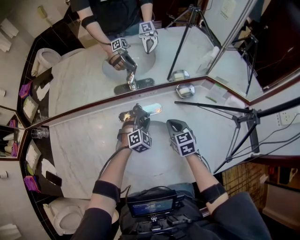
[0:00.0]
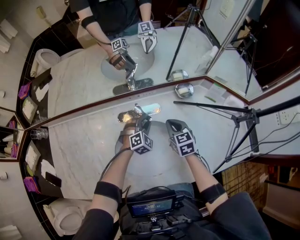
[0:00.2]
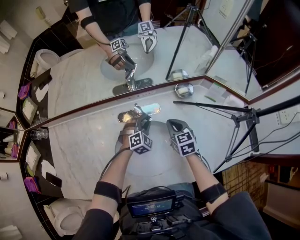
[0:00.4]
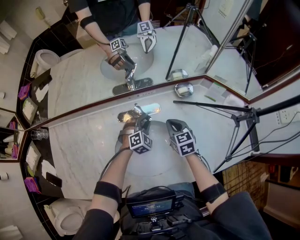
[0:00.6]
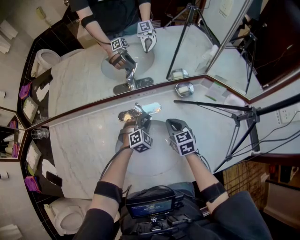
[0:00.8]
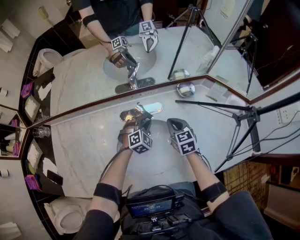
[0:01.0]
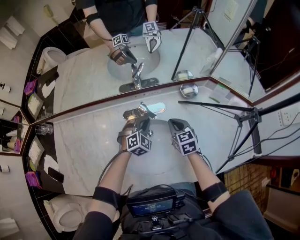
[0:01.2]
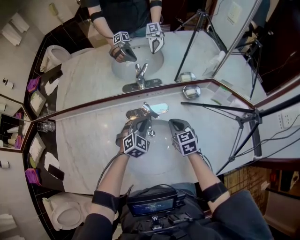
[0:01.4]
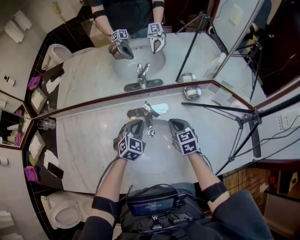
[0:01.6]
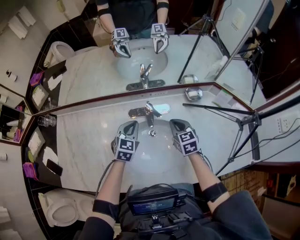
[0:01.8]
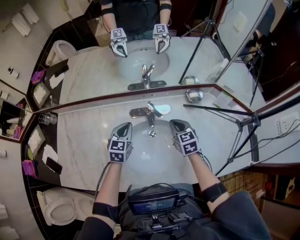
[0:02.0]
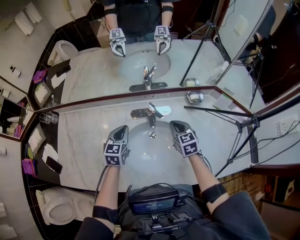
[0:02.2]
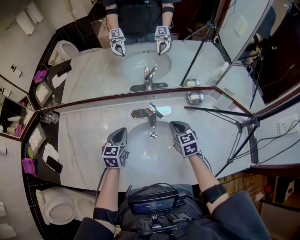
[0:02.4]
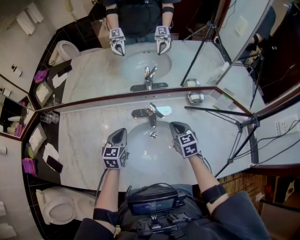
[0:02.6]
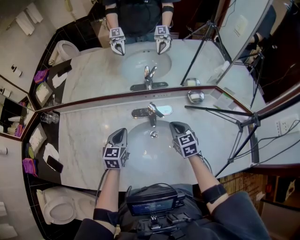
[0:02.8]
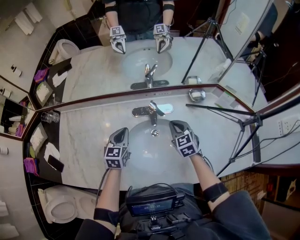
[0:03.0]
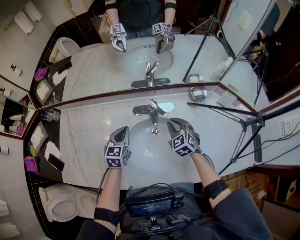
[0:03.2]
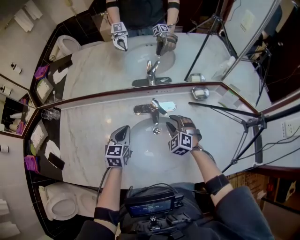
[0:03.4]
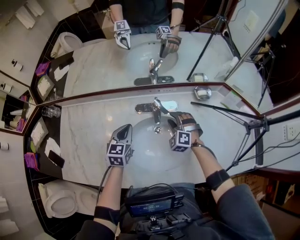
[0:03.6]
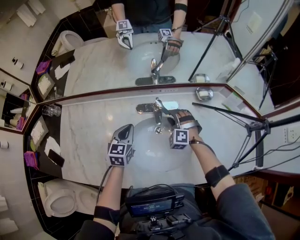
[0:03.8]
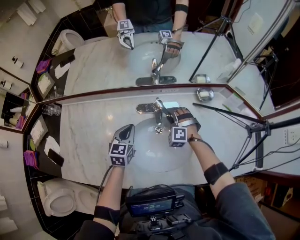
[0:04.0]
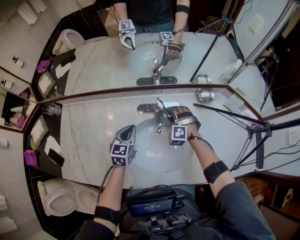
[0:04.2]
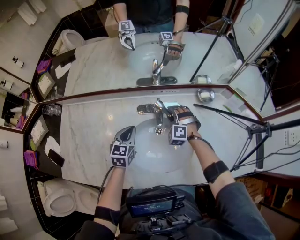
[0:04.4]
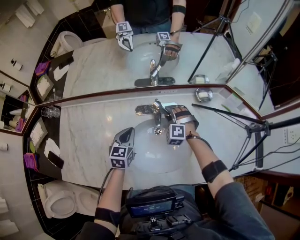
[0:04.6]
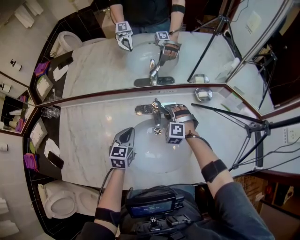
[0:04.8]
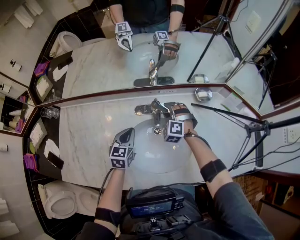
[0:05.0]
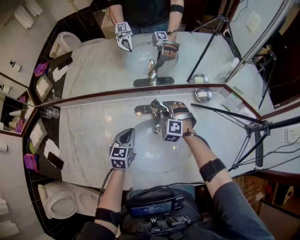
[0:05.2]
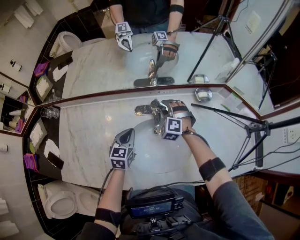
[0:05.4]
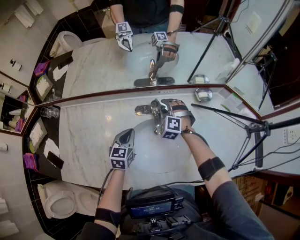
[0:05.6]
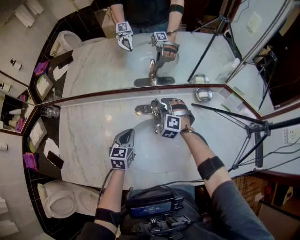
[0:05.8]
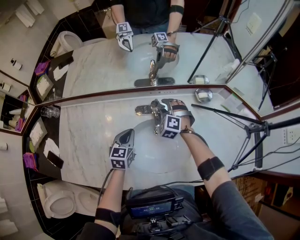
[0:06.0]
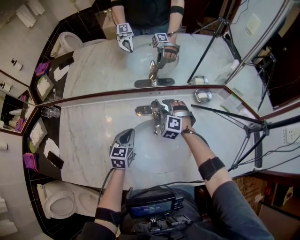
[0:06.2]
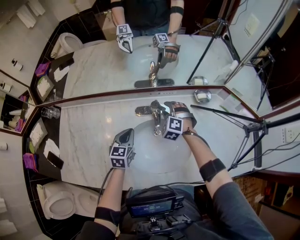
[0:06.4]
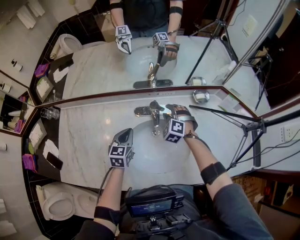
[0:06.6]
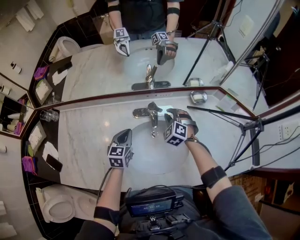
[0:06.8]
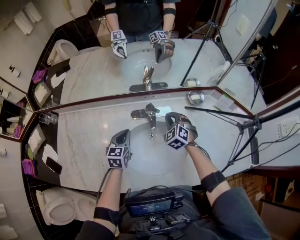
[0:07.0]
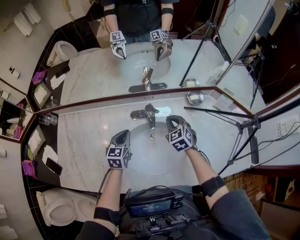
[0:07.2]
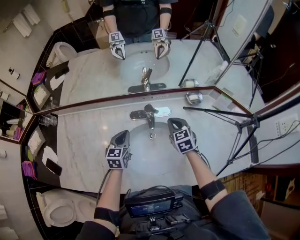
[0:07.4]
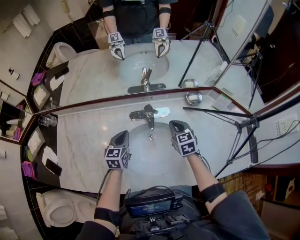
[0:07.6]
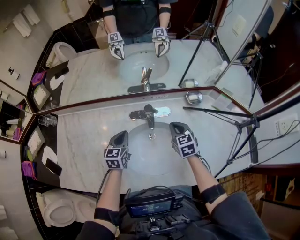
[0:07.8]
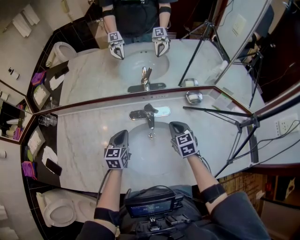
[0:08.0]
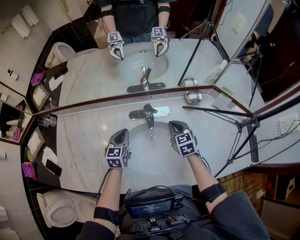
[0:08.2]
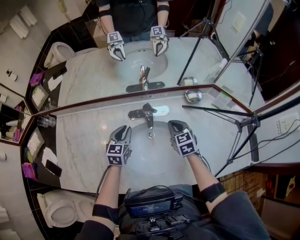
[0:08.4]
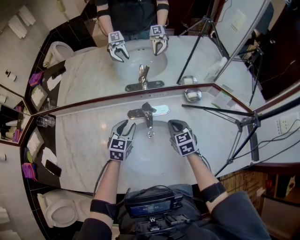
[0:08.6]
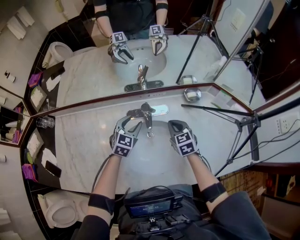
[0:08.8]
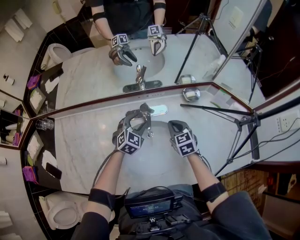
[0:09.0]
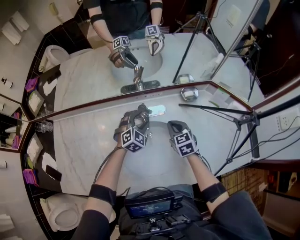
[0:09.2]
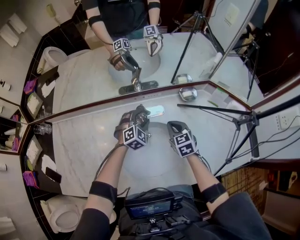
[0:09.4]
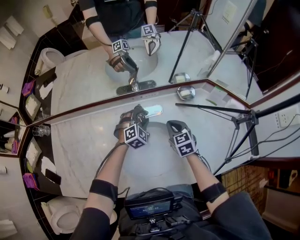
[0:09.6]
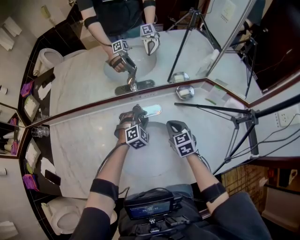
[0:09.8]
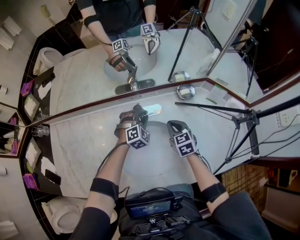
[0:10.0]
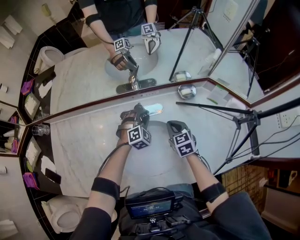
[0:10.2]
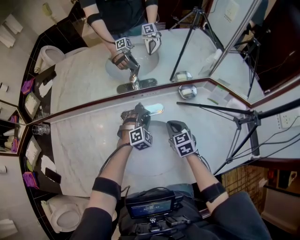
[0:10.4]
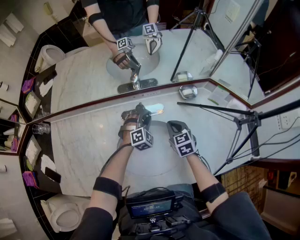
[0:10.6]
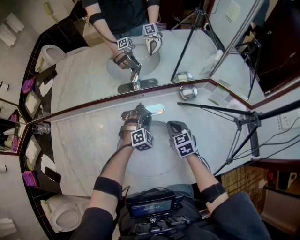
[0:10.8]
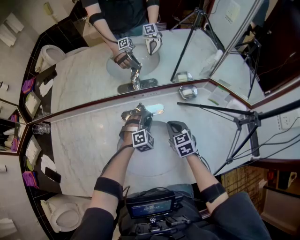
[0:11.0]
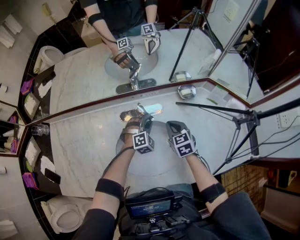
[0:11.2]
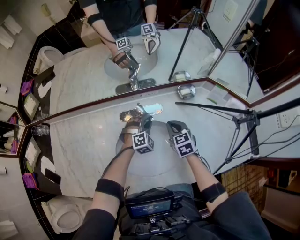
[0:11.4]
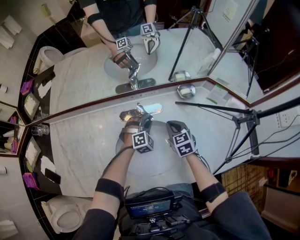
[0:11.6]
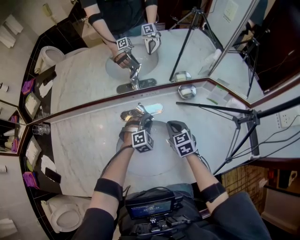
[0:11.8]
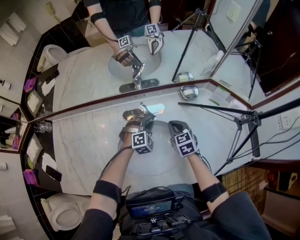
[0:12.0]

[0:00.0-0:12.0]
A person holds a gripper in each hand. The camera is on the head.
0:00.0 to 0:01.6: The left gripper travels upward and to the left by approximately 10 cm, swivels some 20 degrees, and closes its fingers.
0:01.6 to 0:03.0: The left gripper goes some 10 cm to the left, and swivels about 40 degrees.
0:03.0 to 0:04.4: The right gripper travels forward and downward by about 10 cm, rolls counterclockwise, seen from behind, by about 60 degrees, and opens its fingers.
0:04.4 to 0:06.0: The grippers make only small movements.
0:06.0 to 0:07.6: The right gripper shifts roughly 10 cm backward and to the right, rotates around the line of its fingers by approximately 60 degrees, clockwise from behind, and closes.
0:07.6 to 0:09.0: The left gripper is displaced to the right and forward by roughly 15 cm, rolls clockwise, seen from behind, by roughly 40 degrees, and opens up.
0:09.0 to 0:10.4: The left gripper heads to the right and downward, covering some 10 cm, rotates roughly 20 degrees, and closes.
0:10.4 to 0:12.0: The grippers stay close to where they were, moving slightly.

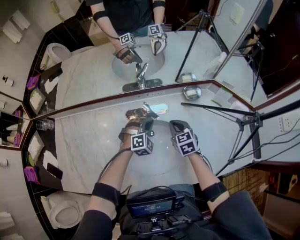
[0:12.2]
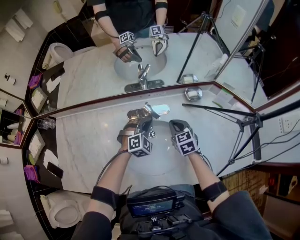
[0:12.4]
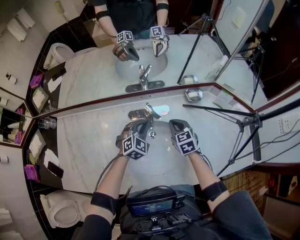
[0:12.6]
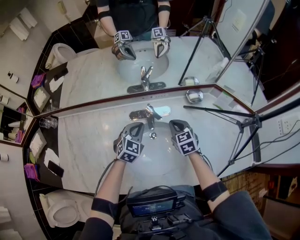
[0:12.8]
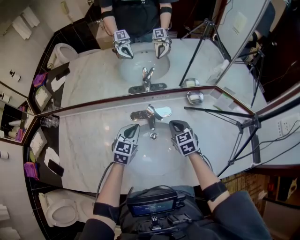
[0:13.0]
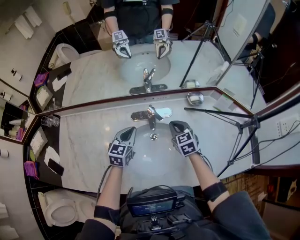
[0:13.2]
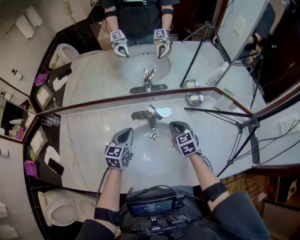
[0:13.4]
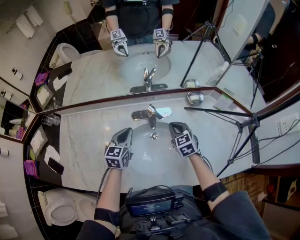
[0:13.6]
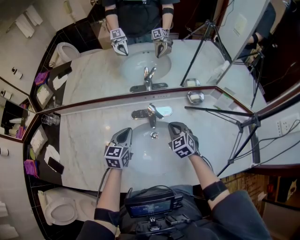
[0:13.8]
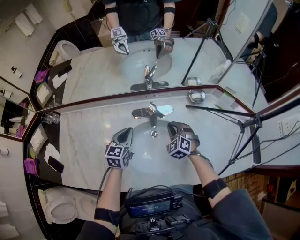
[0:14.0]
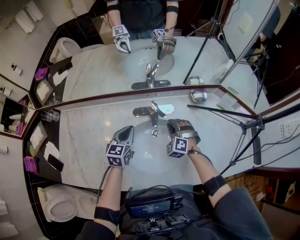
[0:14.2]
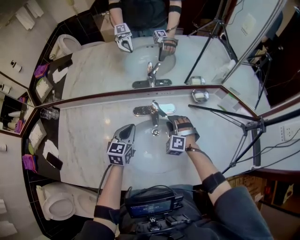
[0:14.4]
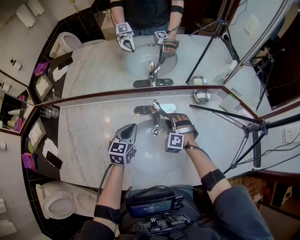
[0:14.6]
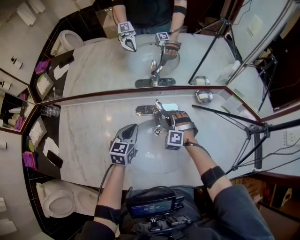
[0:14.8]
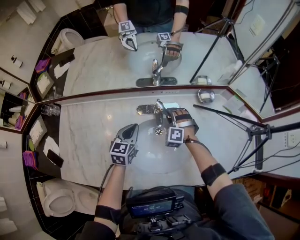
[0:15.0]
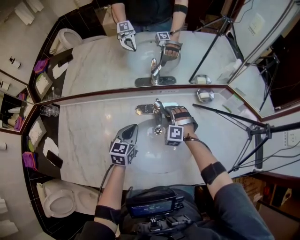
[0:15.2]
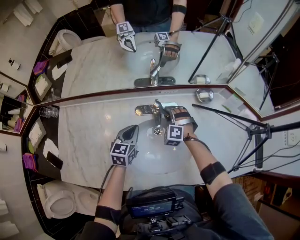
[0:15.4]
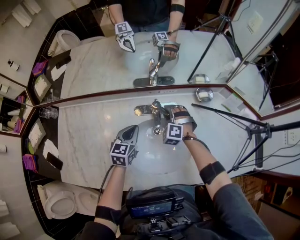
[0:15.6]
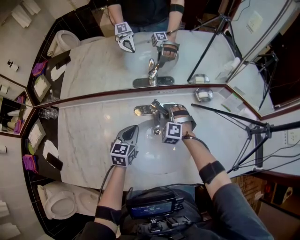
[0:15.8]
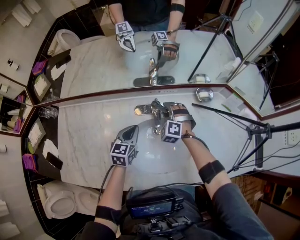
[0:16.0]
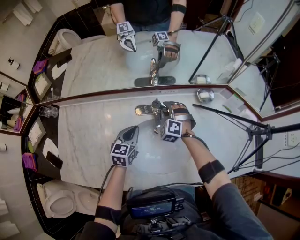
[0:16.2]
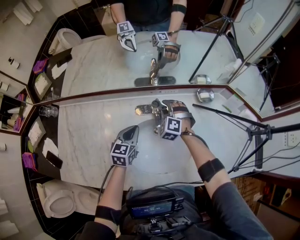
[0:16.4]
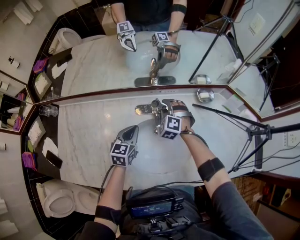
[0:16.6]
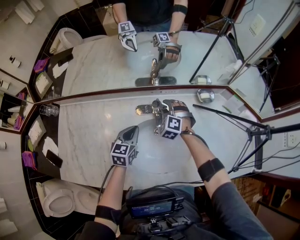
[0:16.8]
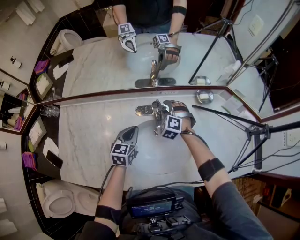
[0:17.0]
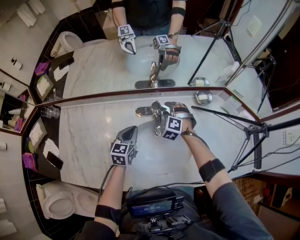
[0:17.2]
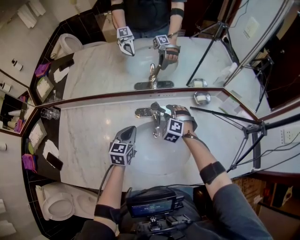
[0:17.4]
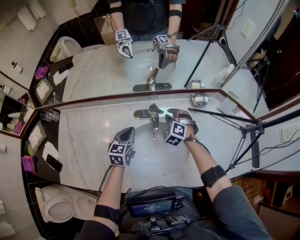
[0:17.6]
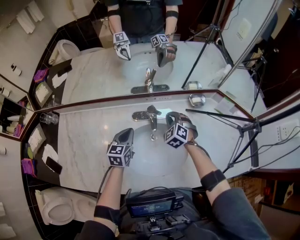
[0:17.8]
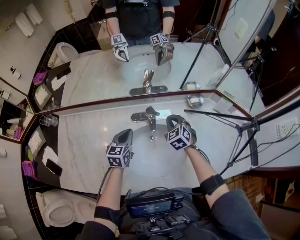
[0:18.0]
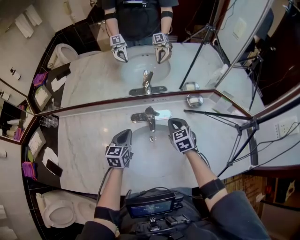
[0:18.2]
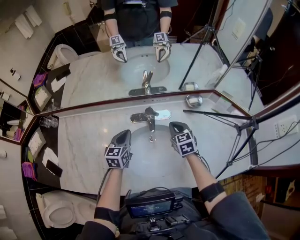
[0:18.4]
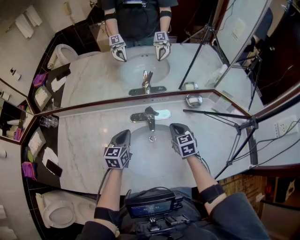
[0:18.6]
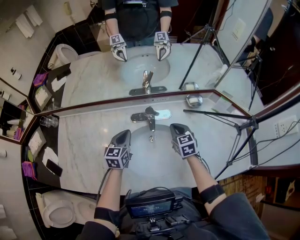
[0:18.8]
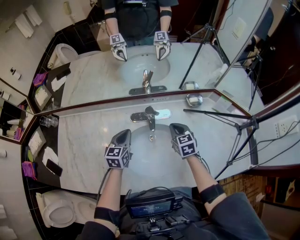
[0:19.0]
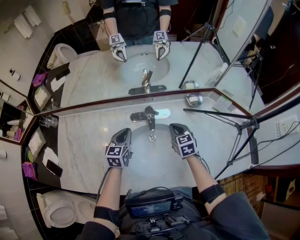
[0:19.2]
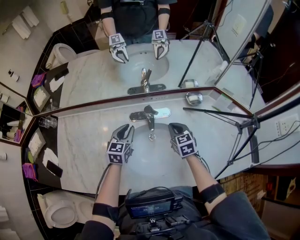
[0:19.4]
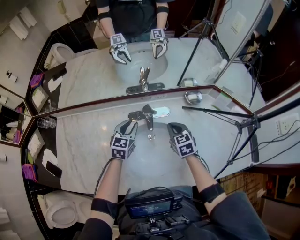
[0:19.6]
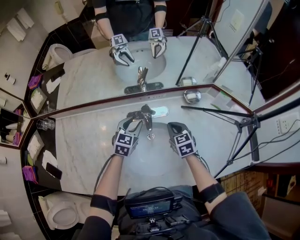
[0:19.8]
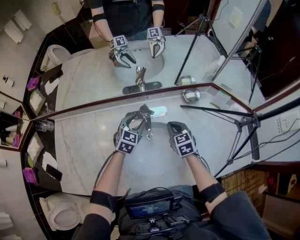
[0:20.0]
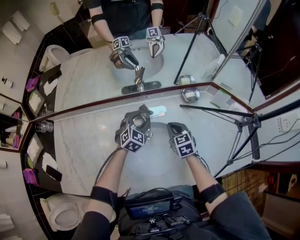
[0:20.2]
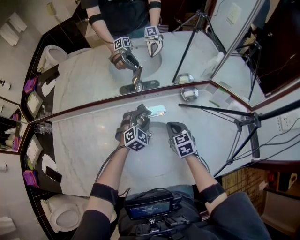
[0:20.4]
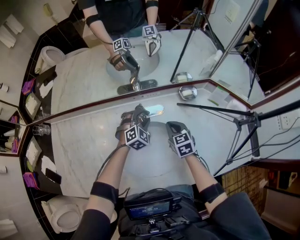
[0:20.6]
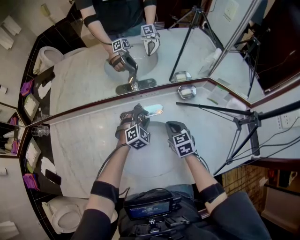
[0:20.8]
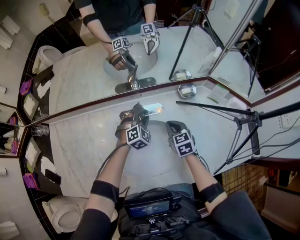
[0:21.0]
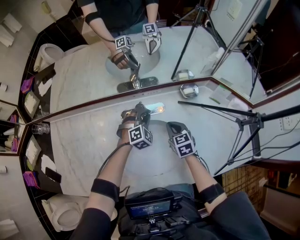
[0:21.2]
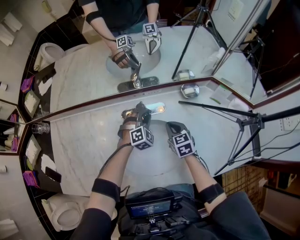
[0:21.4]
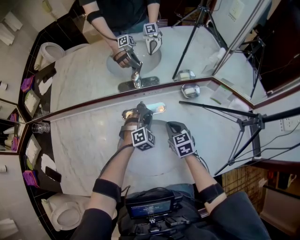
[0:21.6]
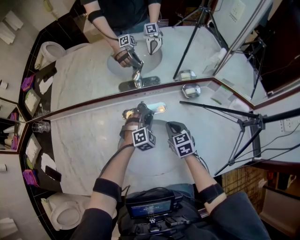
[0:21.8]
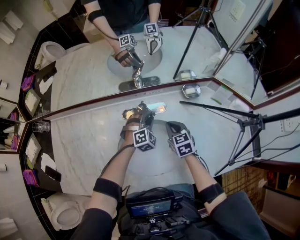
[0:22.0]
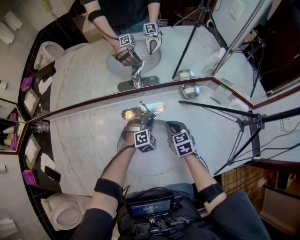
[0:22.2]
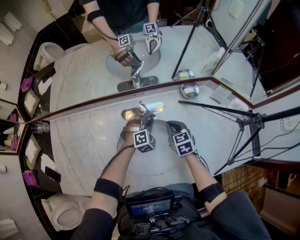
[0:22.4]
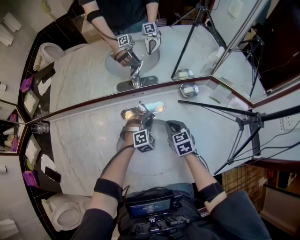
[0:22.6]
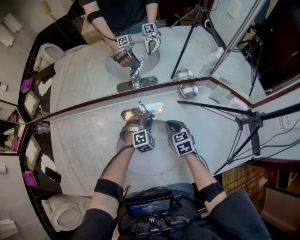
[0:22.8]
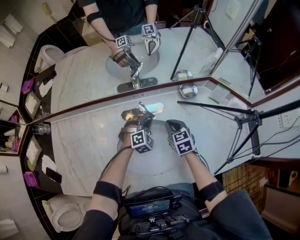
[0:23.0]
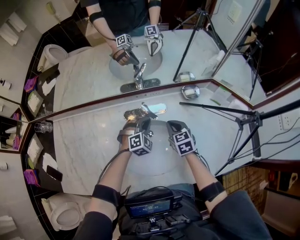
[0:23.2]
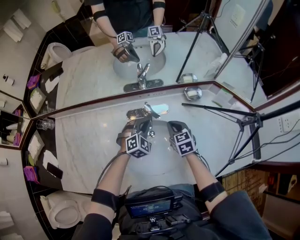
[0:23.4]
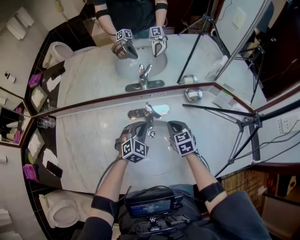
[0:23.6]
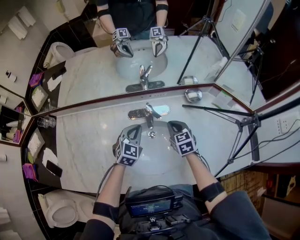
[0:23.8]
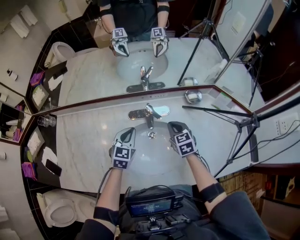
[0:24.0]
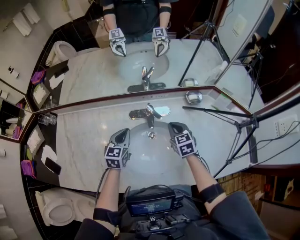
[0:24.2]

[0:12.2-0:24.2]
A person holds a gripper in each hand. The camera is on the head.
0:12.2 to 0:13.8: The left gripper travels to the left and upward by about 15 cm, and rolls counterclockwise, seen from behind, by approximately 70 degrees.
0:13.8 to 0:15.2: The right gripper travels forward, to the left and downward by approximately 10 cm, rotates around the line of its fingers by roughly 50 degrees, counterclockwise from behind, and opens up.
0:15.2 to 0:16.6: The grippers make only small movements.
0:16.6 to 0:18.2: The right gripper travels to the right, backward and upward by approximately 10 cm, twists approximately 50 degrees clockwise, seen from behind, and closes.
0:18.2 to 0:19.8: The left gripper moves to the right, roughly 10 cm, turns by some 20 degrees, and opens up.
0:19.8 to 0:21.2: The left gripper travels downward and to the right by approximately 10 cm, and twists about 40 degrees clockwise, seen from behind.
0:21.2 to 0:22.6: The grippers move only a little.
0:22.6 to 0:24.2: The right gripper ends up some 5 cm from where it was; the left gripper heads to the left, upward and backward, covering some 20 cm, rotates around the line of its fingers by approximately 60 degrees, counterclockwise from behind, and closes its fingers.
